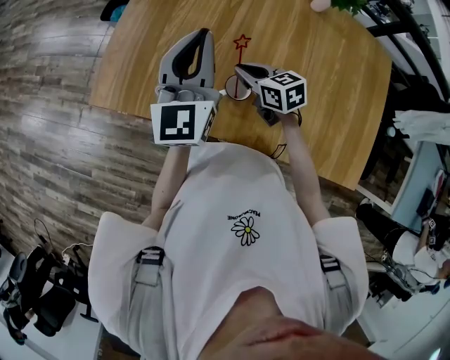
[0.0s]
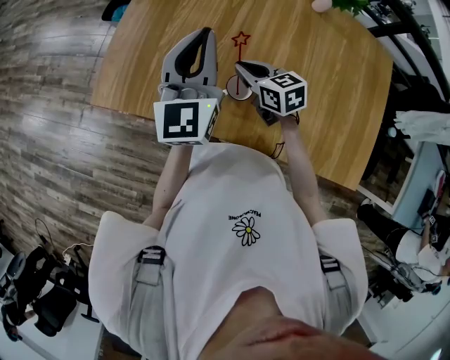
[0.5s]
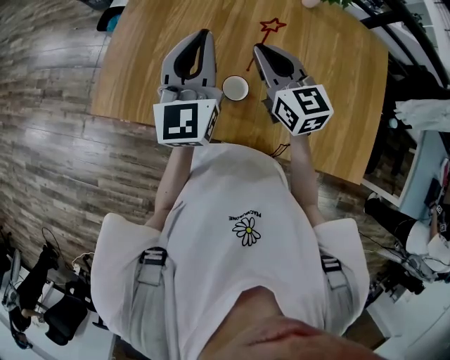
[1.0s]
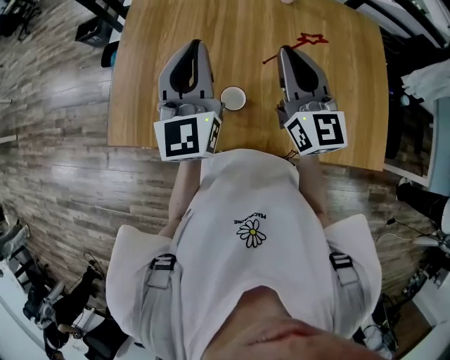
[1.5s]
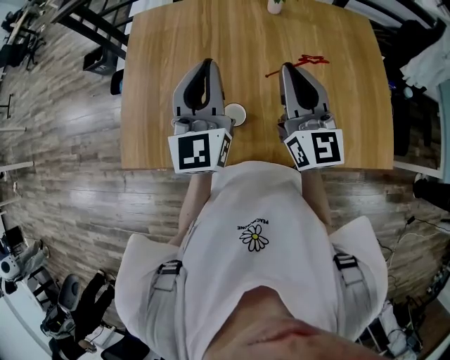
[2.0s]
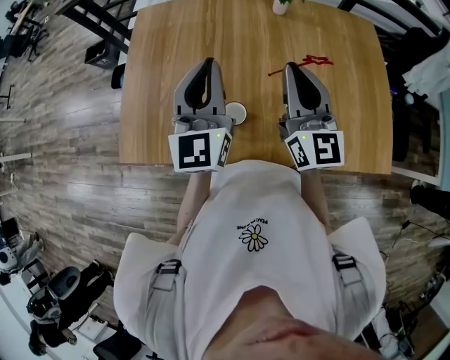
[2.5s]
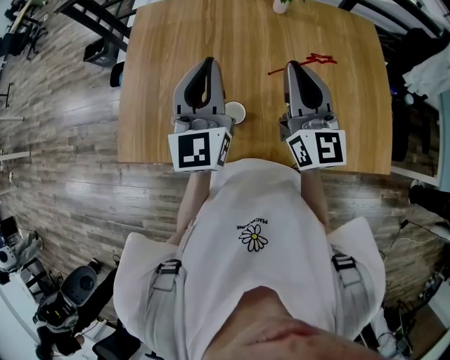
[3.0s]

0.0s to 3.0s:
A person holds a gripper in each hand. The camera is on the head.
0.0s to 1.5s: The right gripper goes about 25 cm upward and to the right, and points its fingers some 40 degrees further upward; the left gripper shifts by approximately 5 cm.
1.5s to 3.0s: The left gripper heads to the right, covering roughly 5 cm.

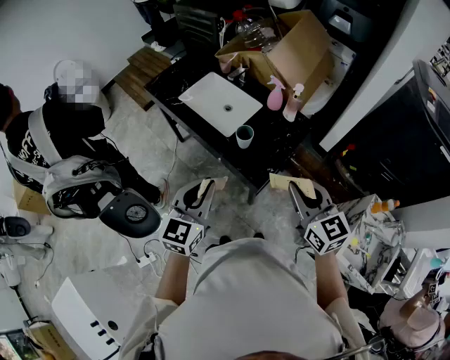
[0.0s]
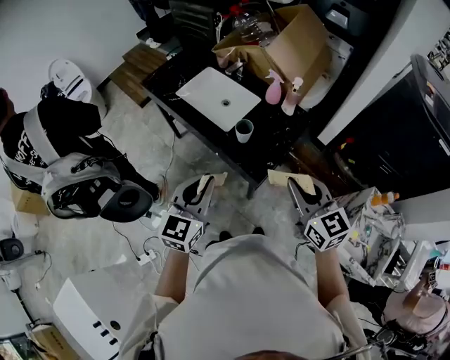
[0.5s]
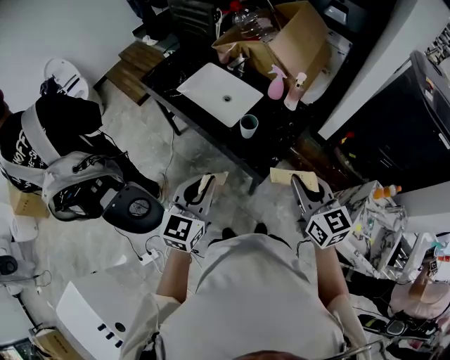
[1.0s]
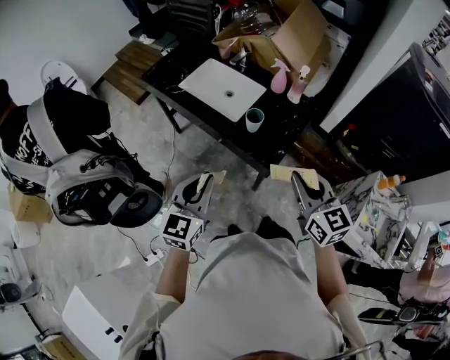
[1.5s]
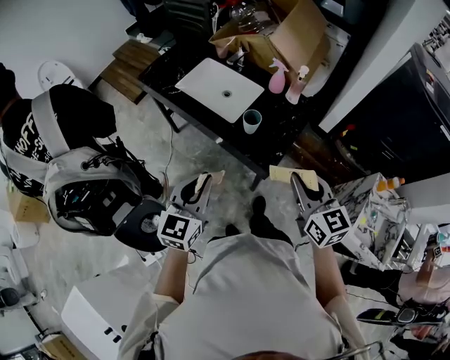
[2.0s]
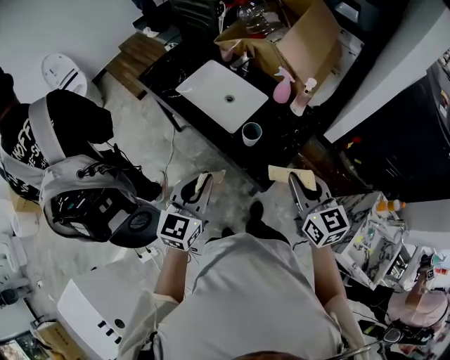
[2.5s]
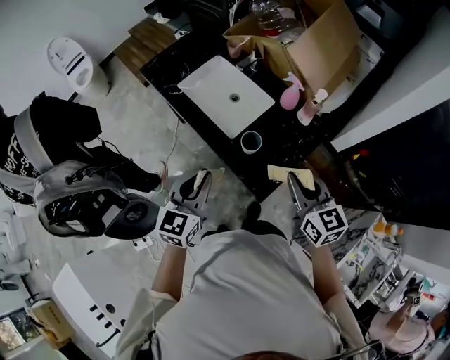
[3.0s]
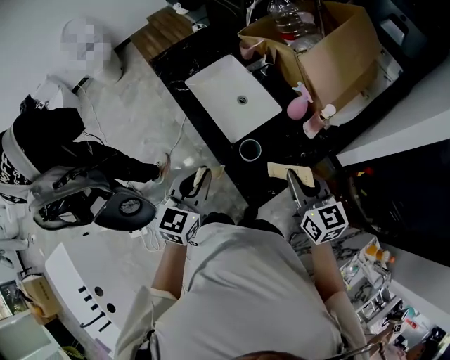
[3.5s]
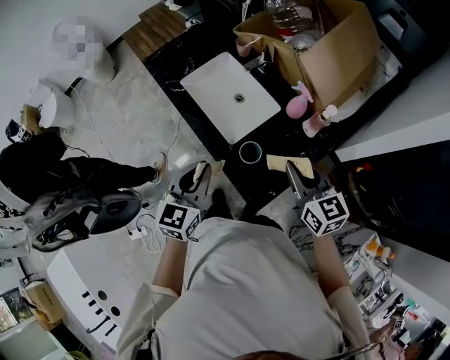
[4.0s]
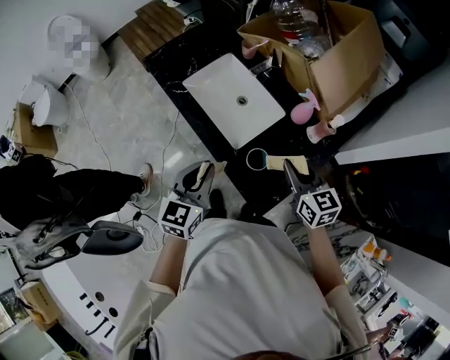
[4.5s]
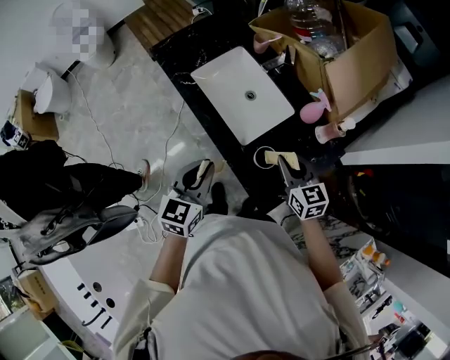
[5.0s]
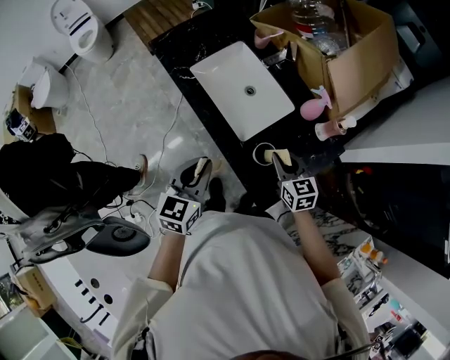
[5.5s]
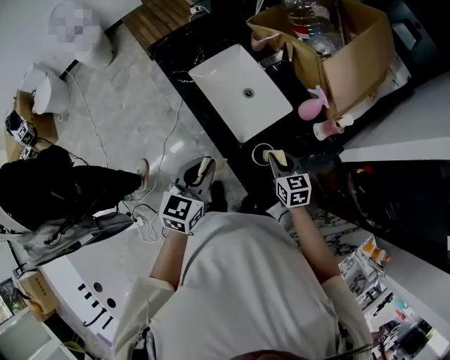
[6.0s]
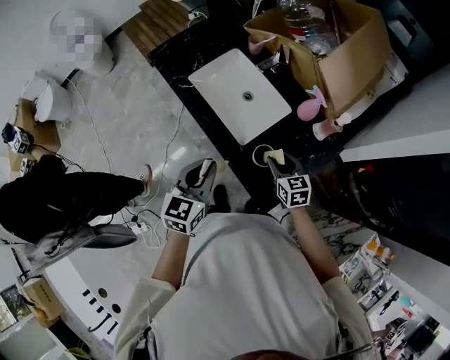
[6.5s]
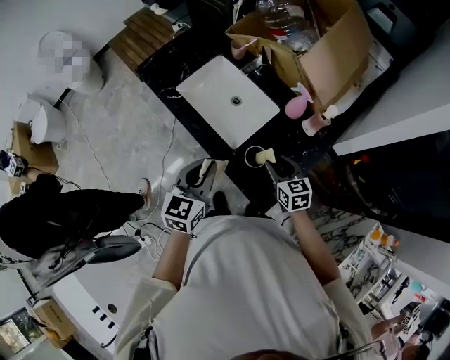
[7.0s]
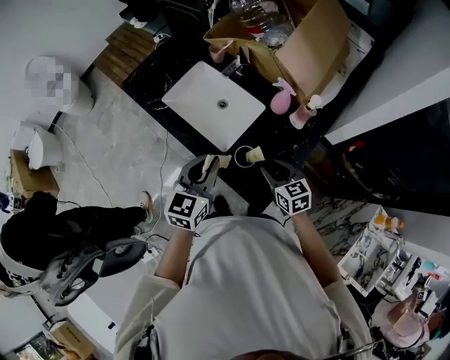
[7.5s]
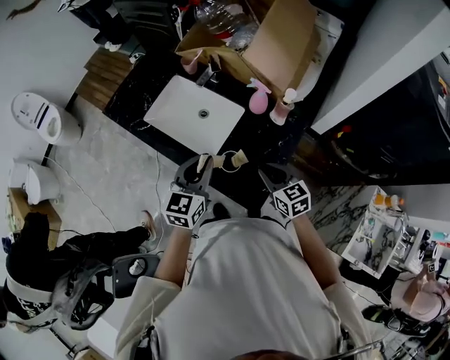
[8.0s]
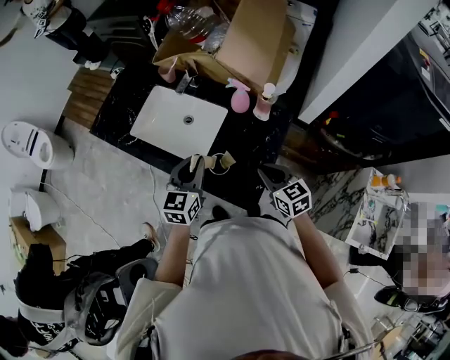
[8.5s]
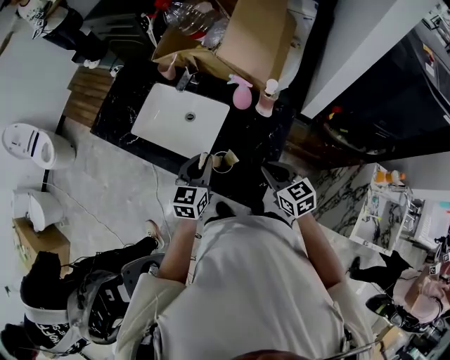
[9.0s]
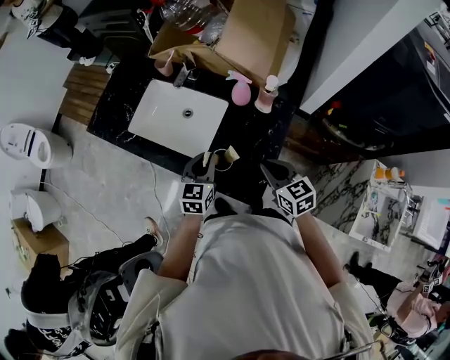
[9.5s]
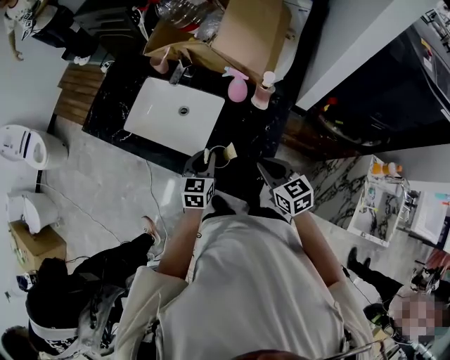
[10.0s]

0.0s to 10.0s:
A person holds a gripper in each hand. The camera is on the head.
0.0s to 2.0s: The grippers both shift to the left by approximately 5 cm.
2.0s to 4.0s: Both grippers move forward, approximately 25 cm.
4.0s to 6.0s: The left gripper ends up approximately 5 cm from where it was, while the right gripper goes approximately 20 cm downward and to the left.
6.0s to 8.0s: The right gripper goes some 10 cm to the right and backward, and opens and closes again, while the left gripper heads to the right and forward, covering approximately 10 cm.
8.0s to 10.0s: The left gripper goes about 15 cm downward.

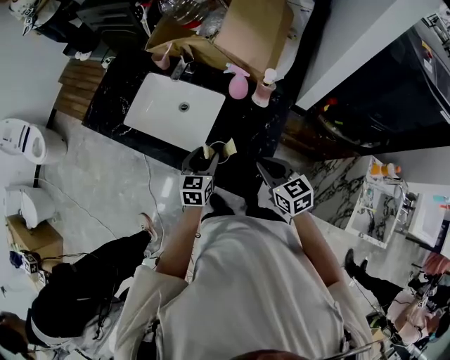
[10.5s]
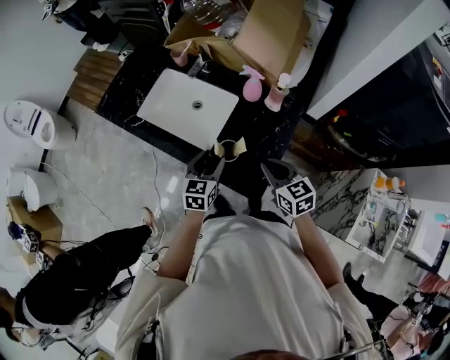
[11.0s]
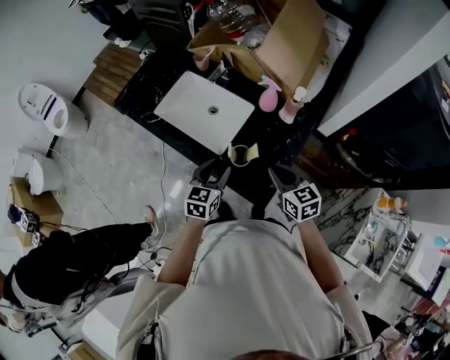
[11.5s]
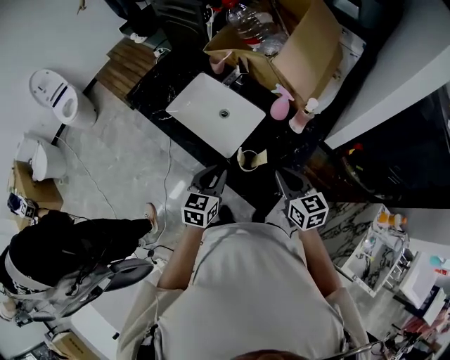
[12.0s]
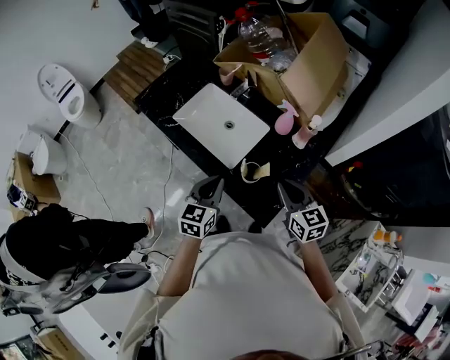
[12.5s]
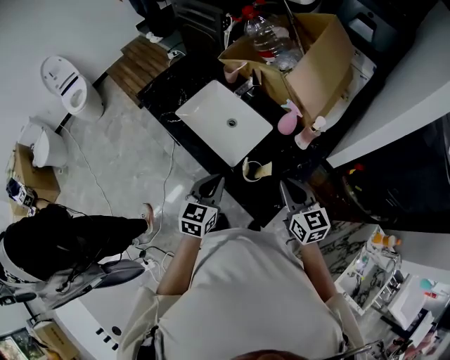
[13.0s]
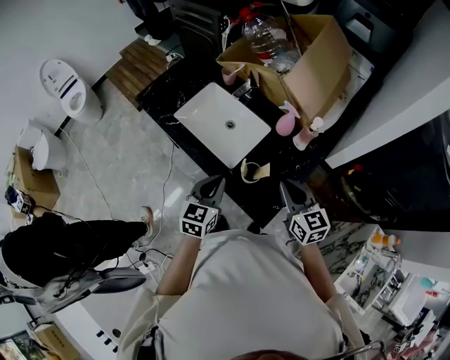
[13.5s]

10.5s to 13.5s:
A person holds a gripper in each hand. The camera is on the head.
10.5s to 12.0s: The left gripper goes about 15 cm upward, to the left and backward, and closes up, while the right gripper goes some 5 cm upward.
12.0s to 13.5s: The grippers move only a little.

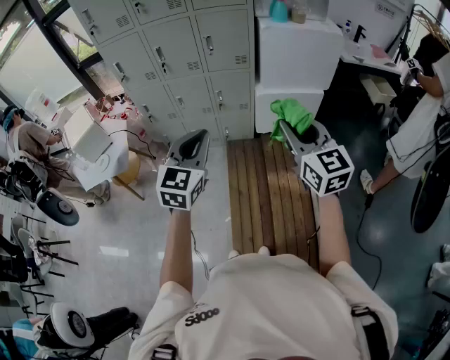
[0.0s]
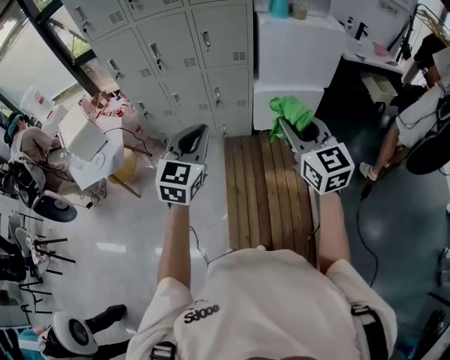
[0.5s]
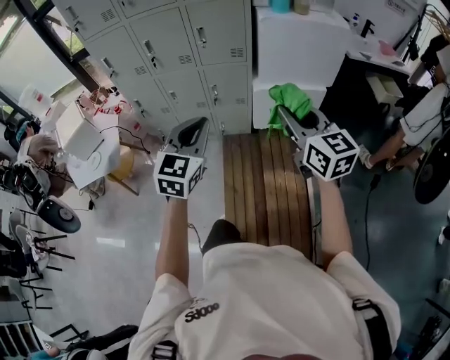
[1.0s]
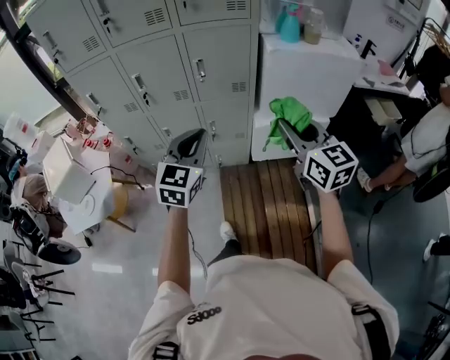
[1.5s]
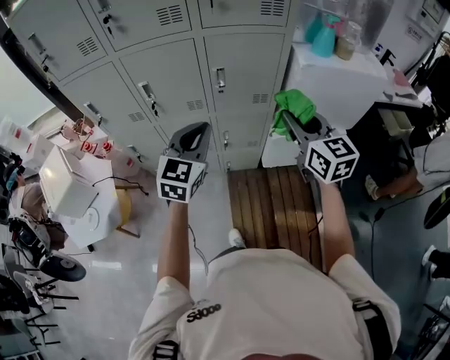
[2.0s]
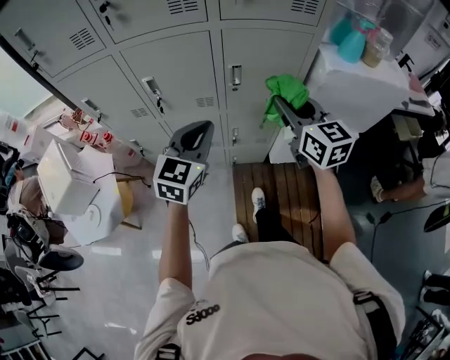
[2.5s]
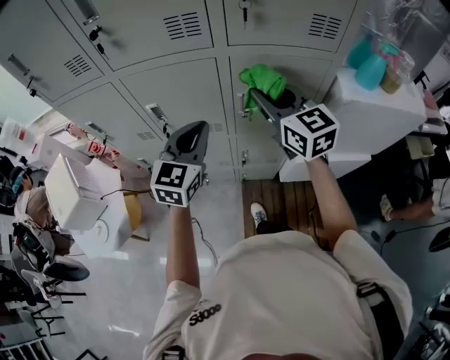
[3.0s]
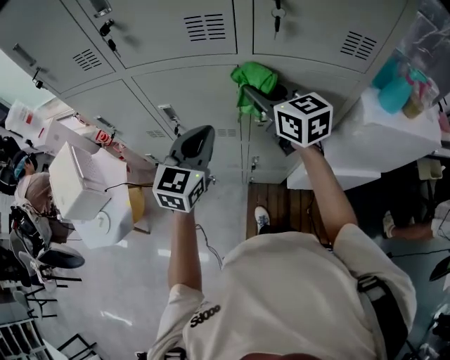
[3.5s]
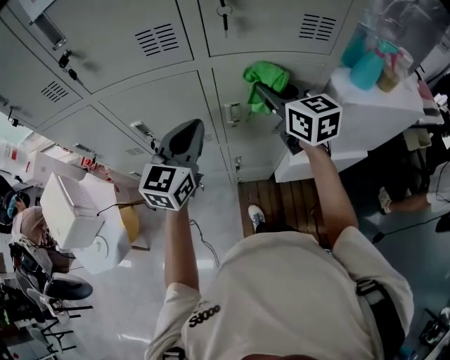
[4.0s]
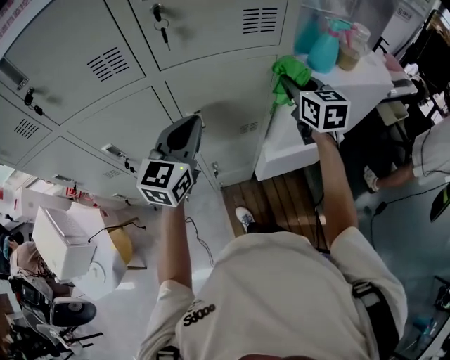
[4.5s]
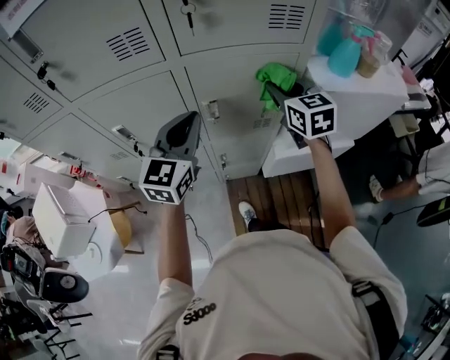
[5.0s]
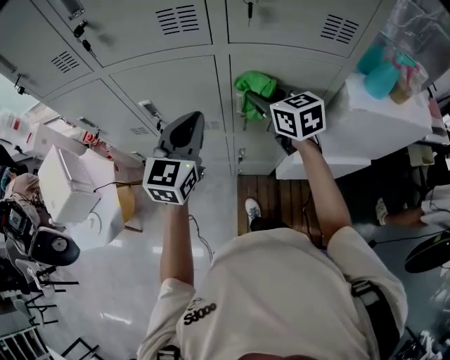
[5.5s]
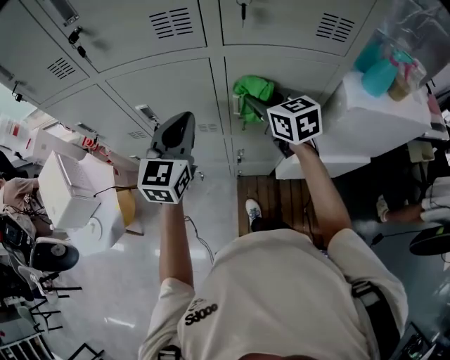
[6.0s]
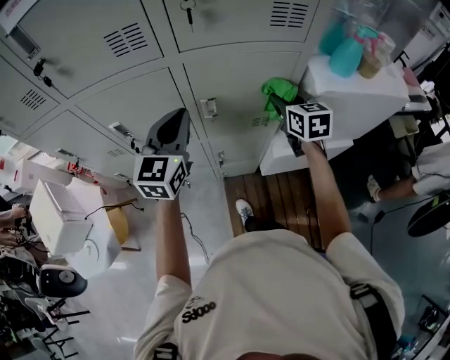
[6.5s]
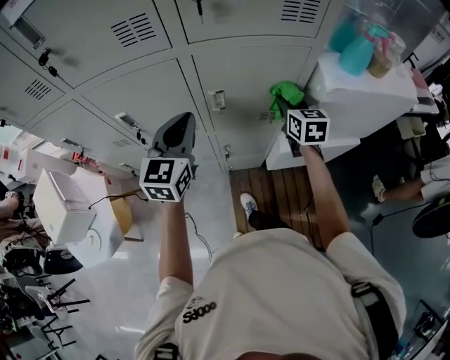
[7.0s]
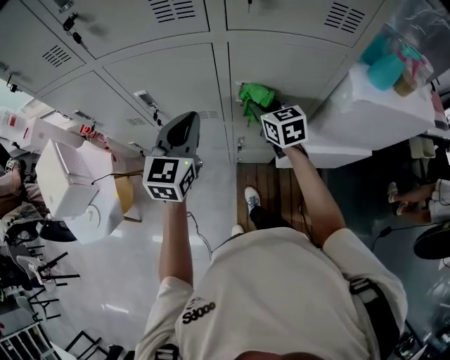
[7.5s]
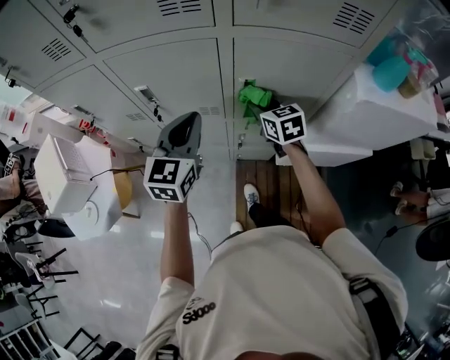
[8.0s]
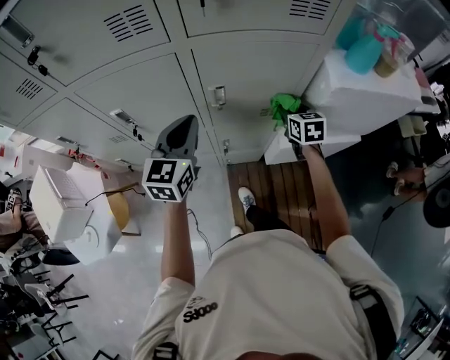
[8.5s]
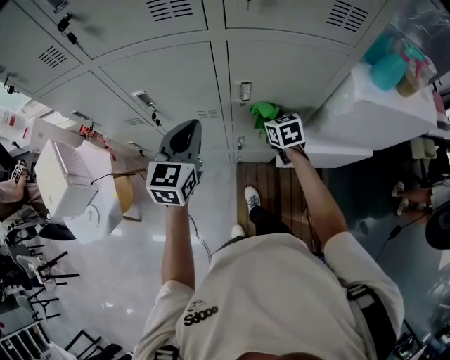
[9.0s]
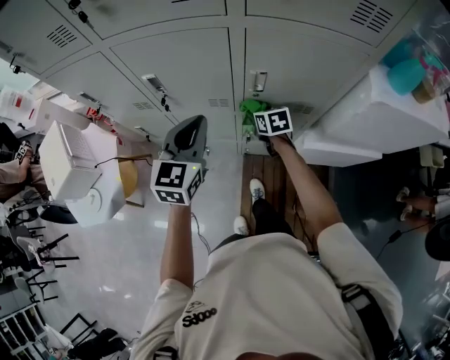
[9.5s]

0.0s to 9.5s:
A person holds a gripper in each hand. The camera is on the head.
0.0s to 2.0s: Both grippers are carried forward, some 50 cm.
2.0s to 4.0s: The two grippers go roughly 25 cm forward.
4.0s to 5.5s: The right gripper heads downward, covering approximately 5 cm.
5.5s to 7.5s: The right gripper heads downward, covering approximately 10 cm, and reaches roughly 20 cm to the right, then returns.
7.5s to 9.5s: The right gripper moves downward, some 15 cm, travels to the right and back again, roughly 20 cm each way, and rotates approximately 20 degrees.

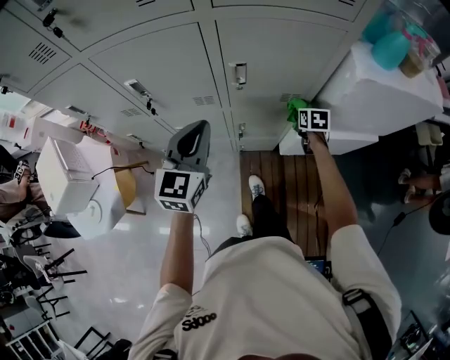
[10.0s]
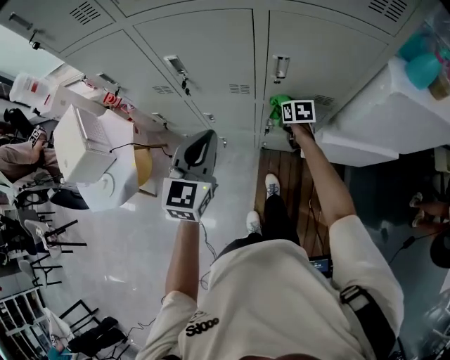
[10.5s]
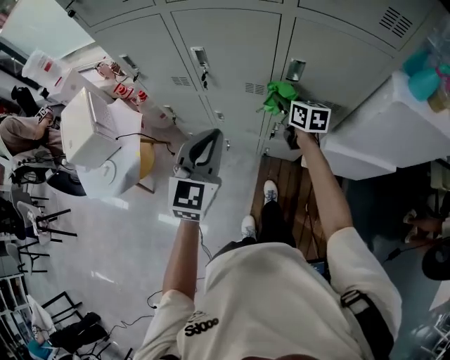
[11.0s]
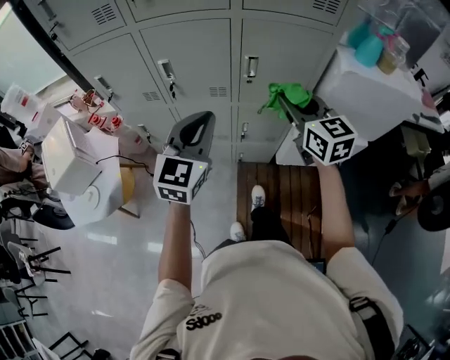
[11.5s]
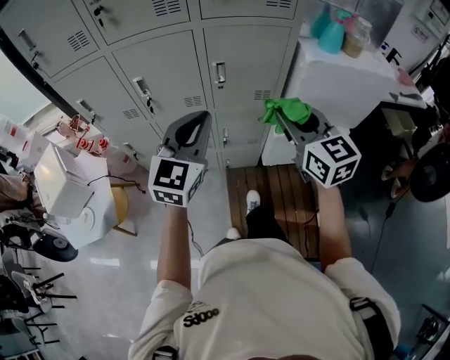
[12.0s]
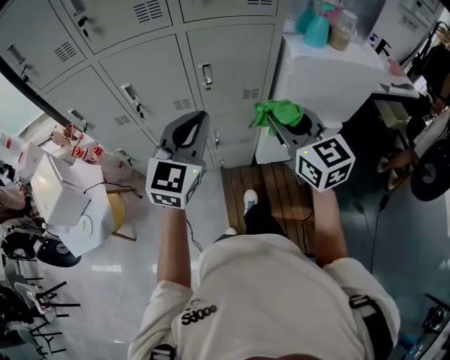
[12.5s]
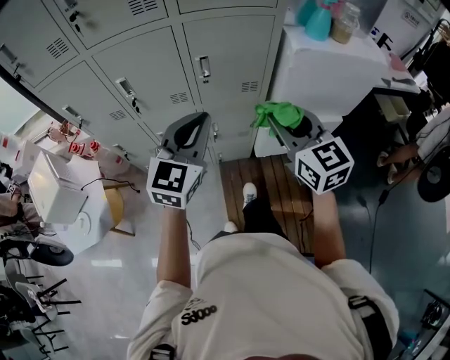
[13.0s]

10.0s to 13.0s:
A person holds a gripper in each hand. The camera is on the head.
10.0s to 11.5s: The right gripper goes some 40 cm upward, backward and to the left, and tilts its fingers approximately 40 degrees upward; the left gripper shifts about 15 cm backward and upward.
11.5s to 13.0s: The left gripper is displaced to the right by some 10 cm; the right gripper moves backward and to the right, roughly 10 cm.
